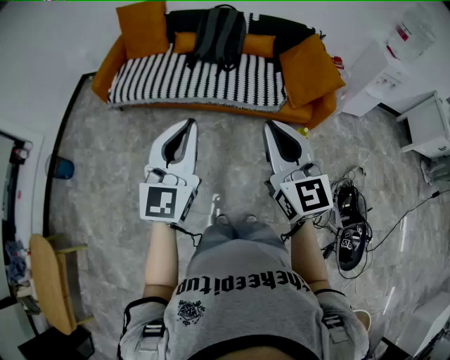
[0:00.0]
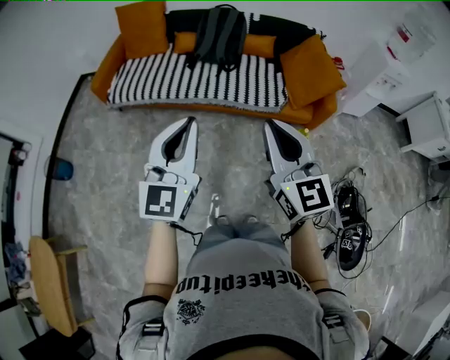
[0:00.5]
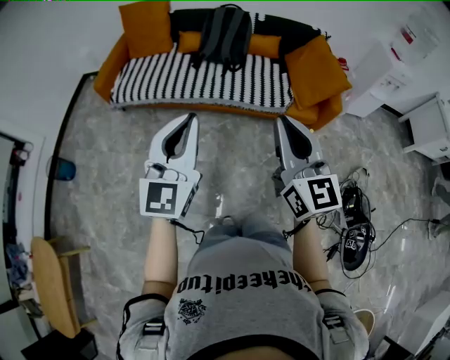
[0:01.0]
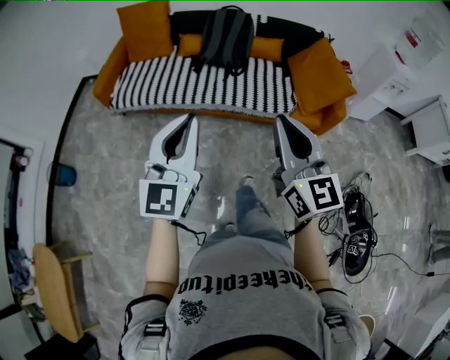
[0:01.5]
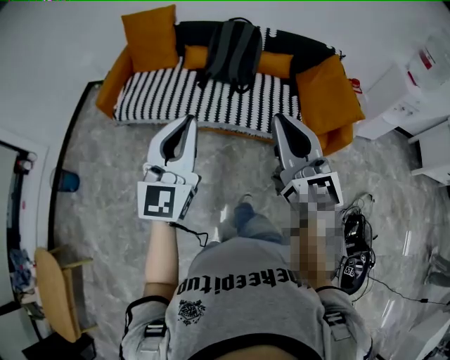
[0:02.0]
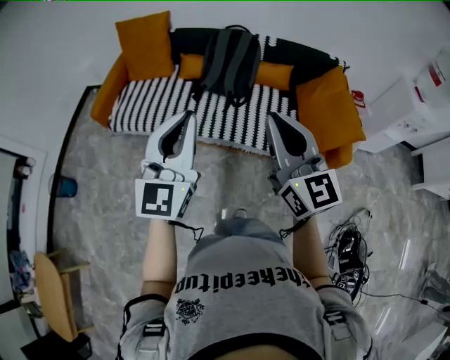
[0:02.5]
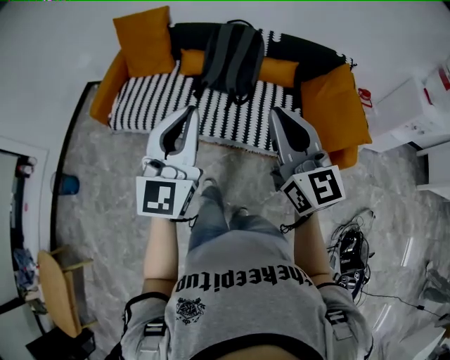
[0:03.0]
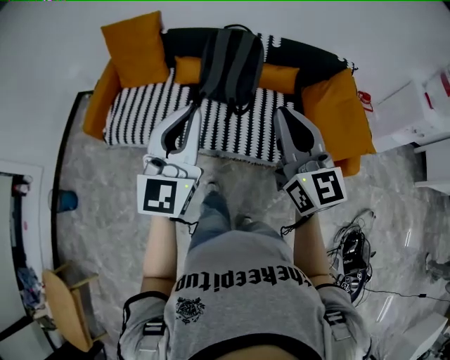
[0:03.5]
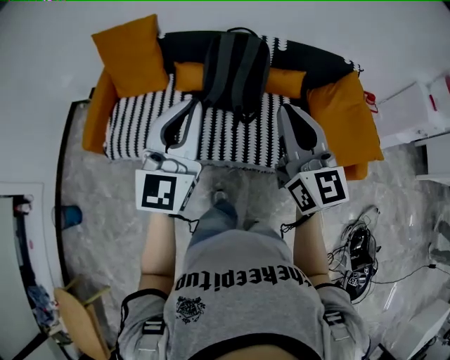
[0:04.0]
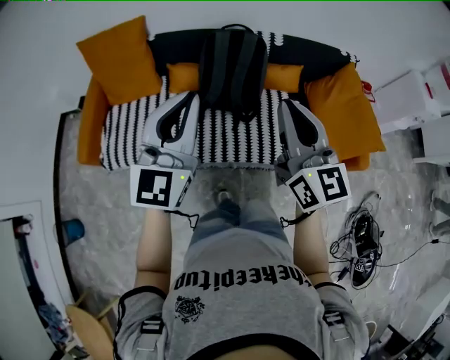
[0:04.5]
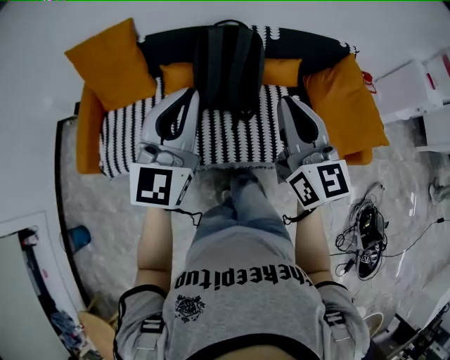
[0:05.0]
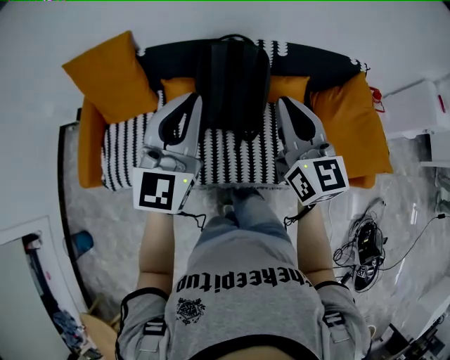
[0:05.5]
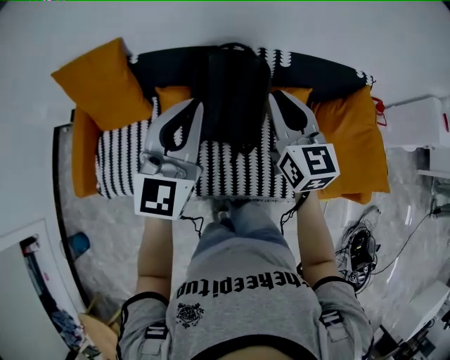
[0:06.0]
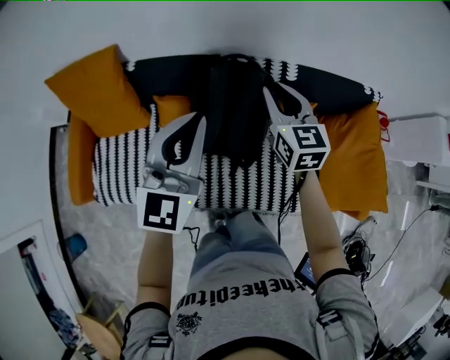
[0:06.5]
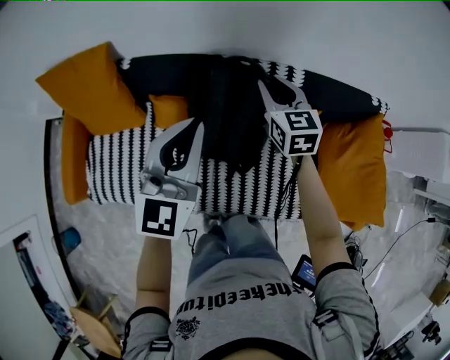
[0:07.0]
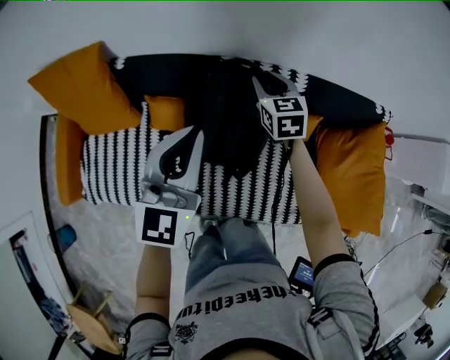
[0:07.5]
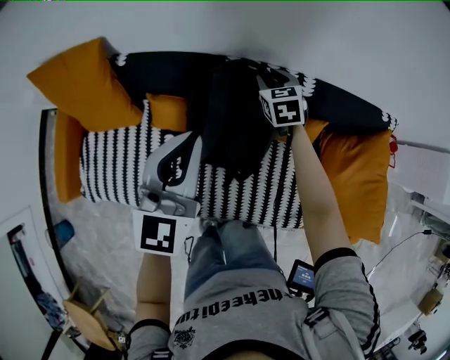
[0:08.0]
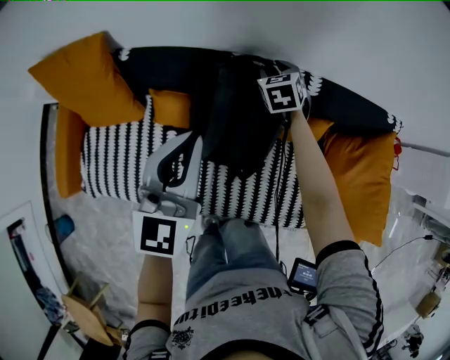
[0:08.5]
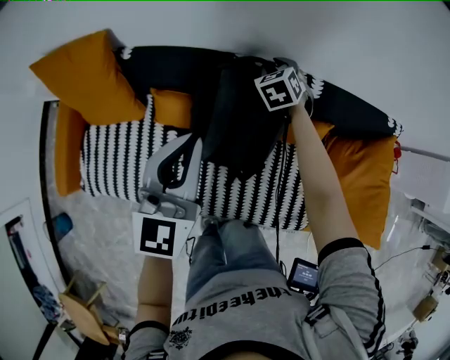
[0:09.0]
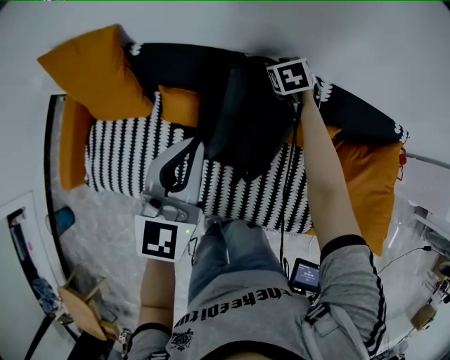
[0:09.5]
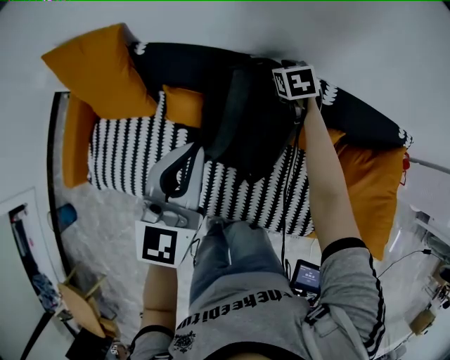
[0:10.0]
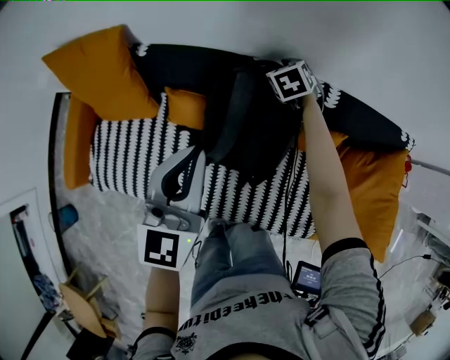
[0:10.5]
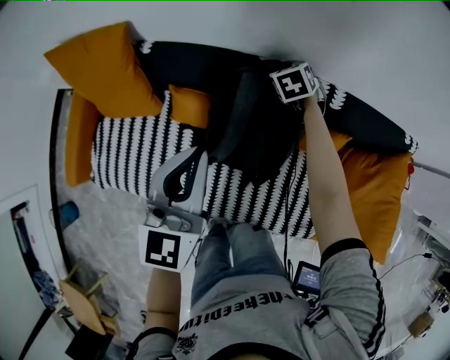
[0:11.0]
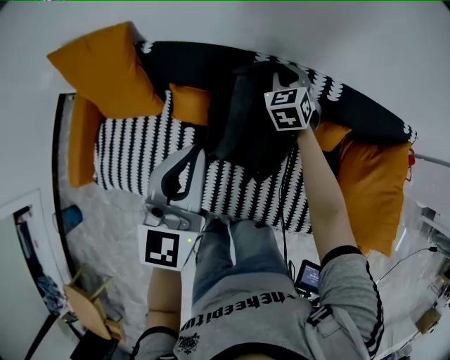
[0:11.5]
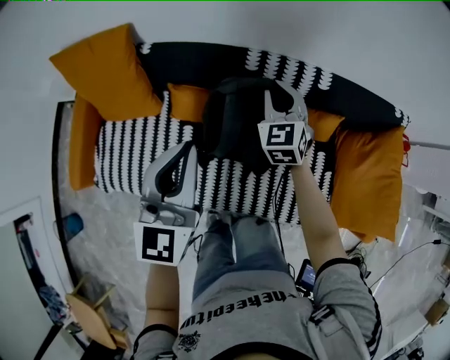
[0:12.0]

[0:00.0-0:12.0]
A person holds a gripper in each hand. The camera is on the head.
0:00.0 to 0:02.0: The grippers both shift forward by approximately 15 cm.
0:02.0 to 0:04.0: Both grippers travel together forward, some 35 cm.
0:04.0 to 0:06.0: The two grippers go about 30 cm forward.
0:06.0 to 0:08.0: The left gripper goes some 15 cm forward and downward. The right gripper goes about 35 cm forward and downward, angles its fingers downward, by some 30 degrees, and opens.
0:08.0 to 0:10.0: The right gripper changes place by about 5 cm.
0:10.0 to 0:12.0: The right gripper shifts some 20 cm backward and upward, and turns by approximately 30 degrees, while the left gripper heads backward, covering roughly 5 cm.

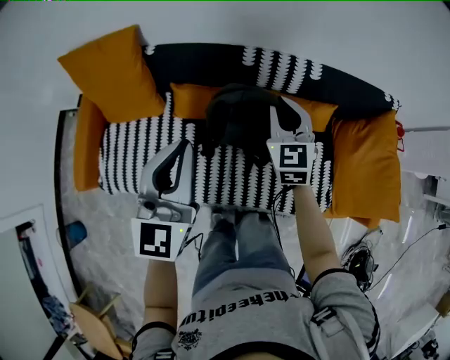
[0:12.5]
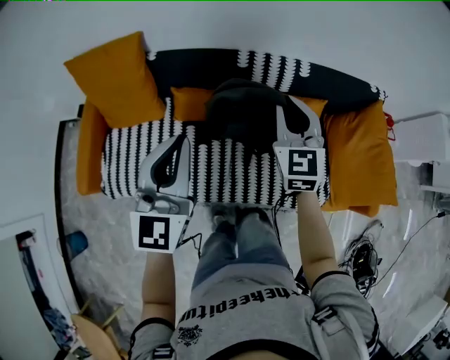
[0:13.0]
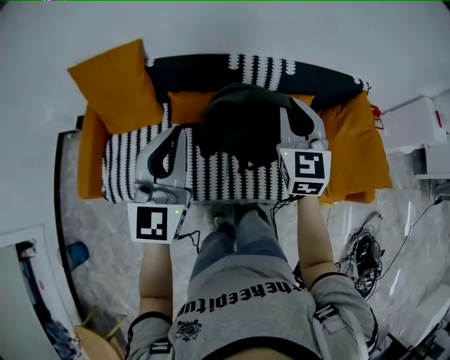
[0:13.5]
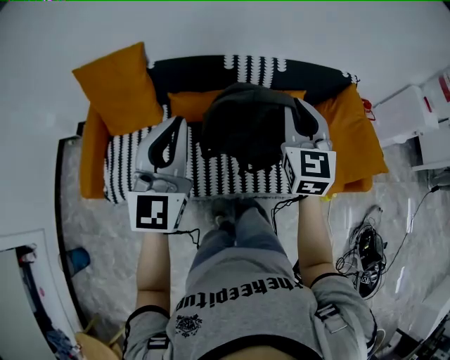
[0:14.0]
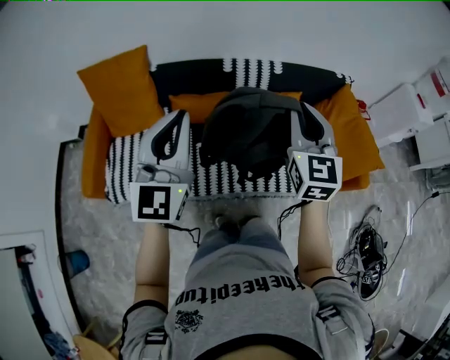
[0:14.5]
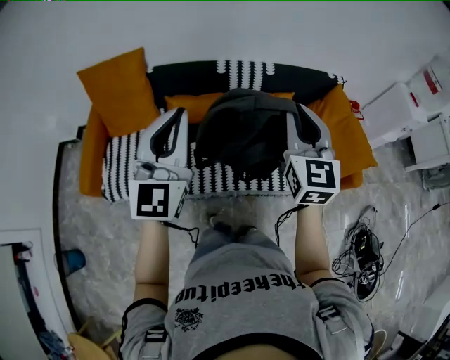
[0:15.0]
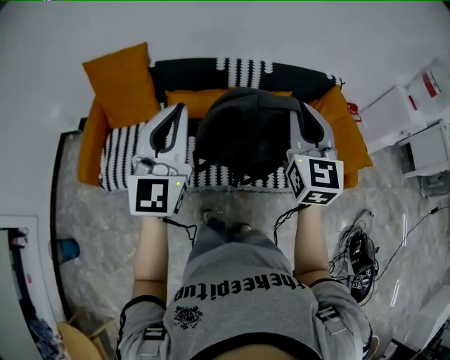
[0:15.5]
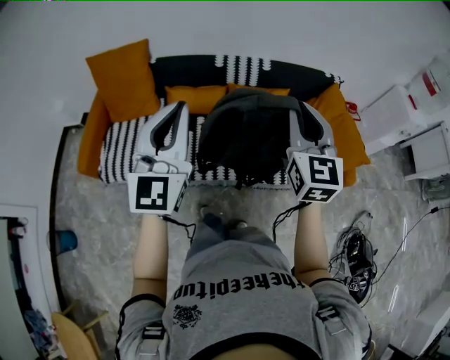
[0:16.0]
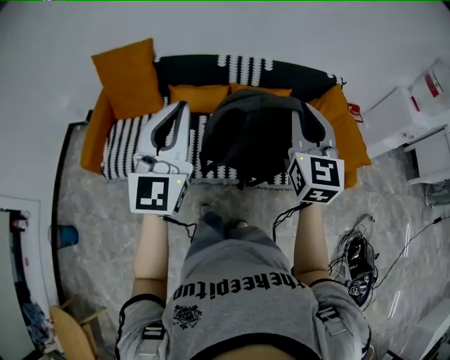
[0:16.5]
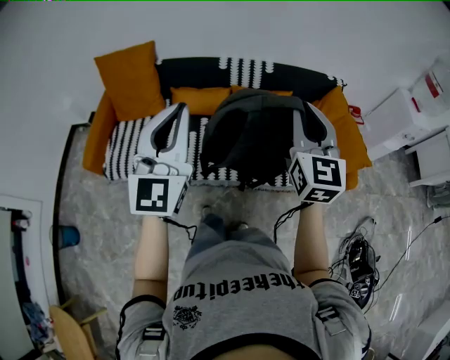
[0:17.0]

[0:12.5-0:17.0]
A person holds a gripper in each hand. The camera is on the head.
0:12.5 to 0:14.5: The left gripper is displaced backward and upward by some 20 cm. Meanwhile the right gripper shifts approximately 30 cm backward and upward, and swivels approximately 20 degrees.
0:14.5 to 0:17.0: The two grippers go approximately 15 cm backward and to the right.

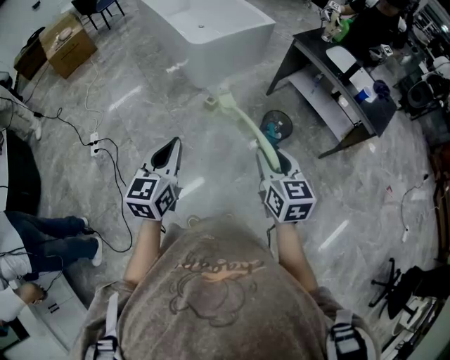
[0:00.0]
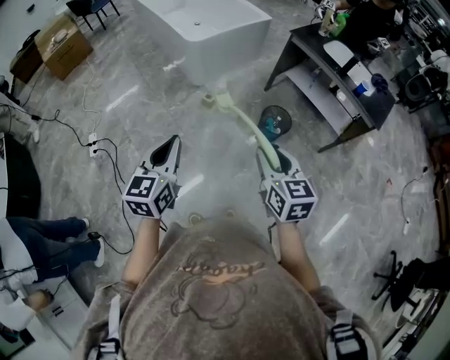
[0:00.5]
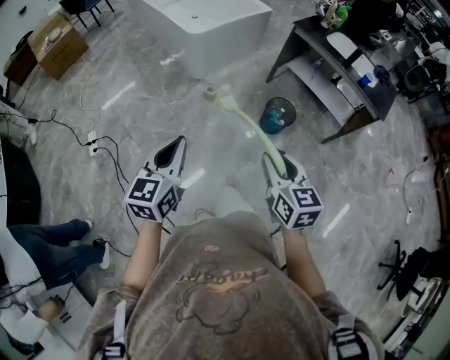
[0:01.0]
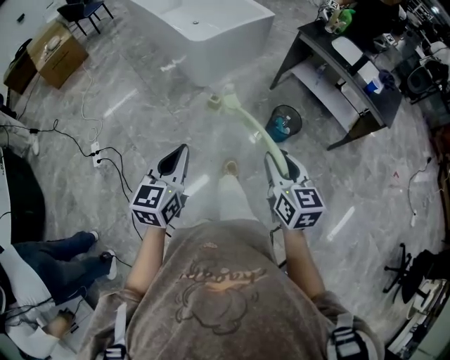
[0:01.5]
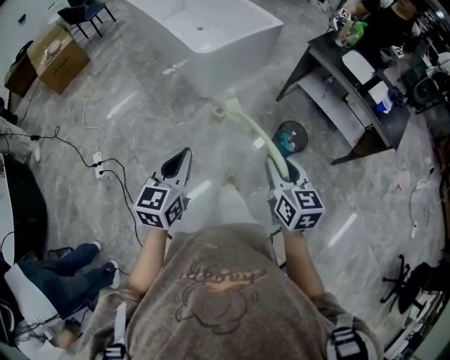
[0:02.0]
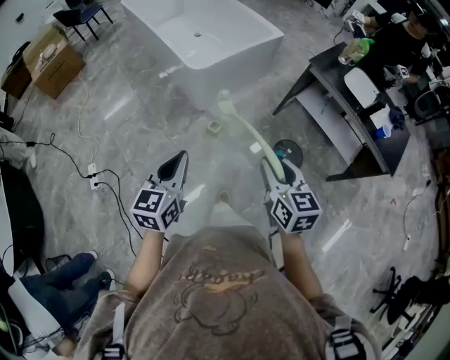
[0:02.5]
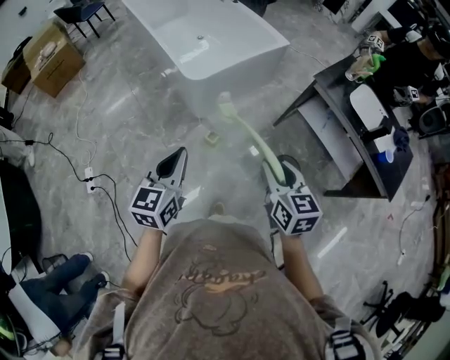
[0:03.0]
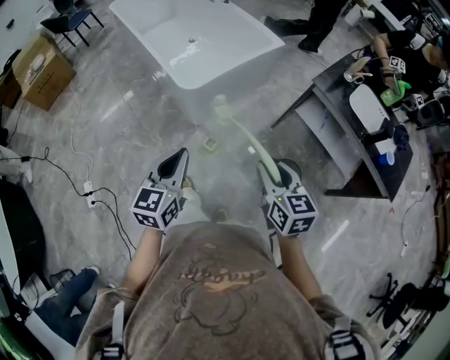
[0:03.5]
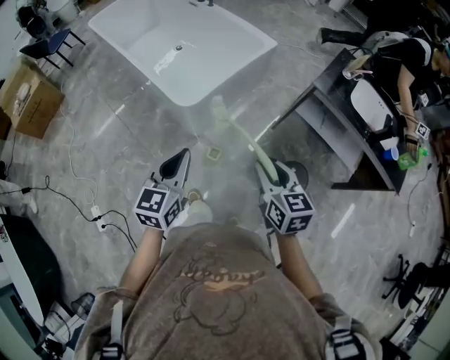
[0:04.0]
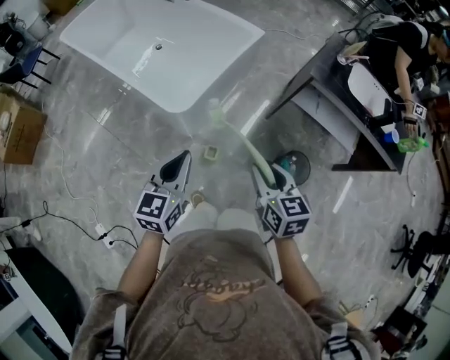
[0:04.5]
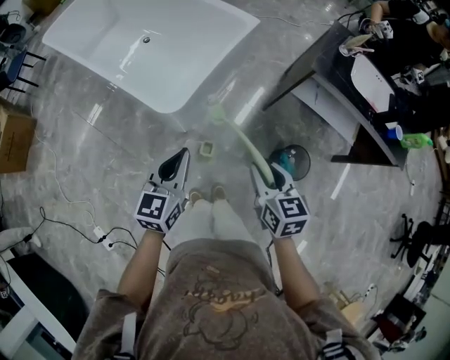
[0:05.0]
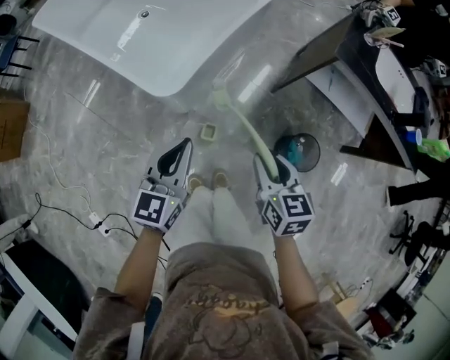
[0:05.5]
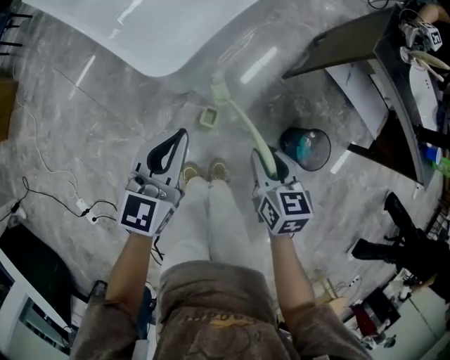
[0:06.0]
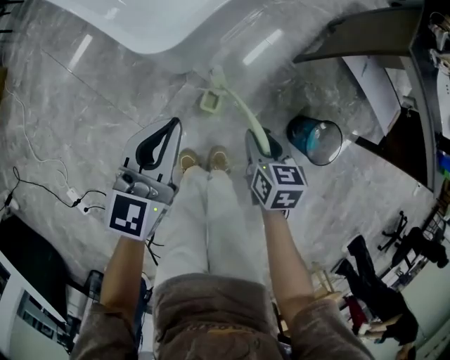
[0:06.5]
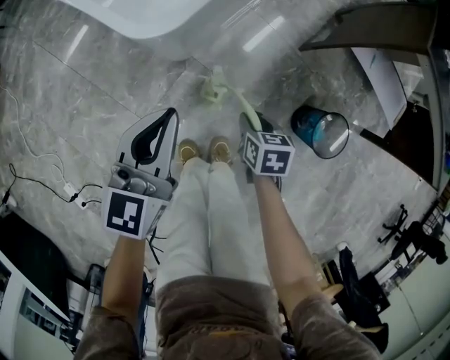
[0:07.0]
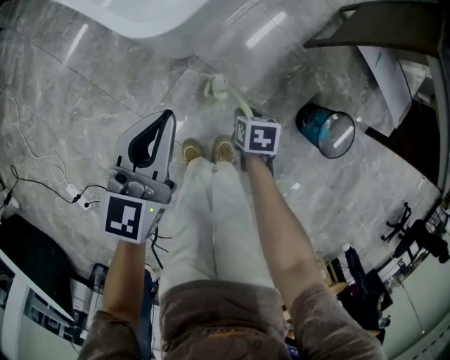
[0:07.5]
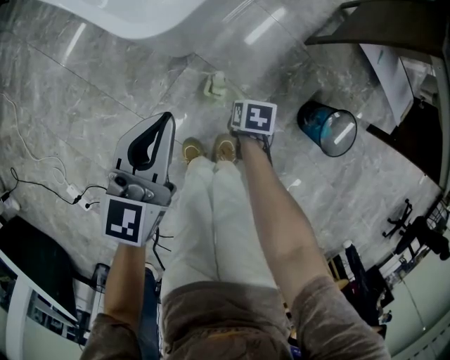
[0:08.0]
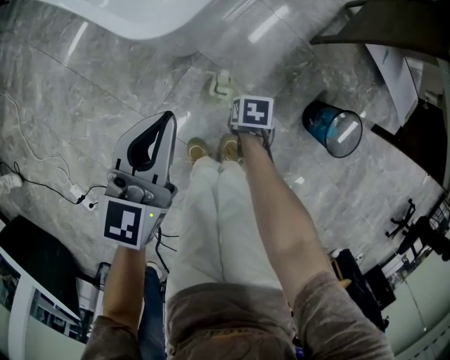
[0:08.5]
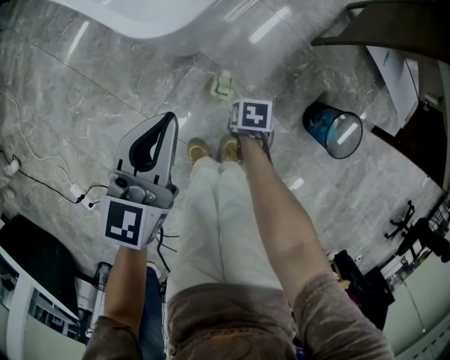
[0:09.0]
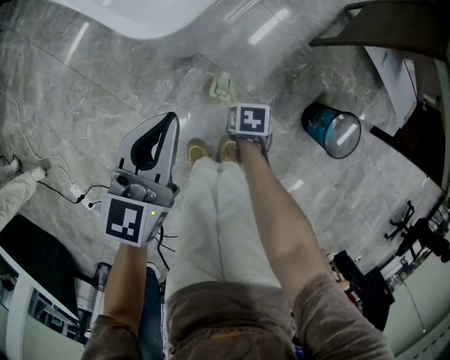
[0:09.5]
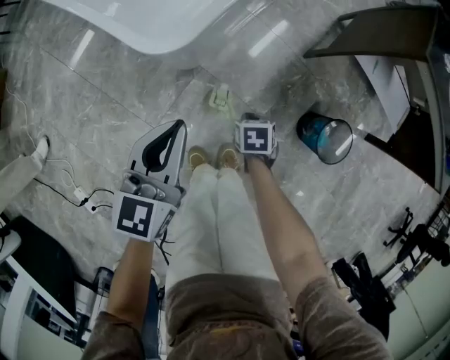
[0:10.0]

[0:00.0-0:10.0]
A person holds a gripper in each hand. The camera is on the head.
0:00.0 to 0:02.0: Both grippers move forward and to the left, about 15 cm.
0:02.0 to 0:04.0: The two grippers go some 40 cm forward.
0:04.0 to 0:06.0: The right gripper travels downward by some 25 cm, while the left gripper heads downward and forward, covering approximately 25 cm.
0:06.0 to 0:08.0: The left gripper moves downward, some 15 cm. The right gripper goes some 35 cm downward, and tips its fingers downward by approximately 40 degrees.
0:08.0 to 0:10.0: The right gripper closes its fingers.
